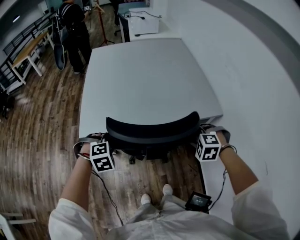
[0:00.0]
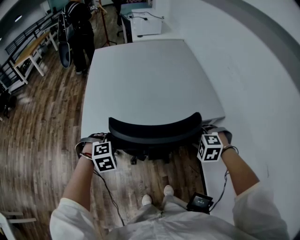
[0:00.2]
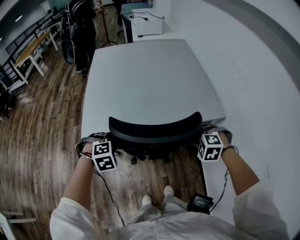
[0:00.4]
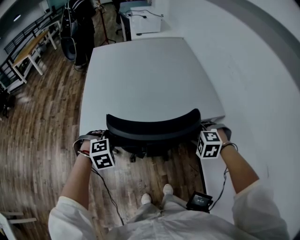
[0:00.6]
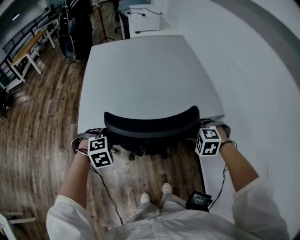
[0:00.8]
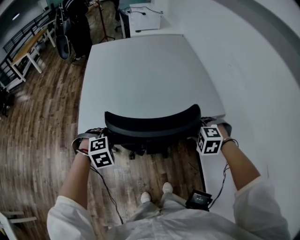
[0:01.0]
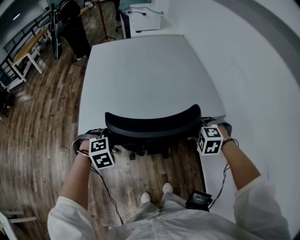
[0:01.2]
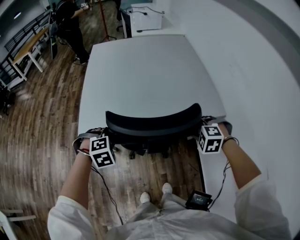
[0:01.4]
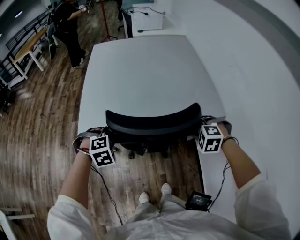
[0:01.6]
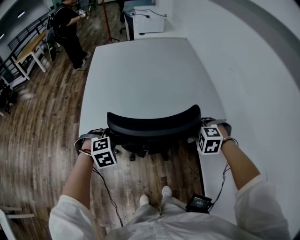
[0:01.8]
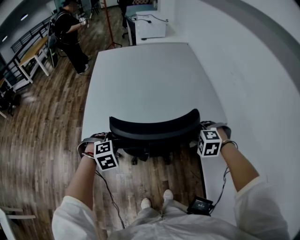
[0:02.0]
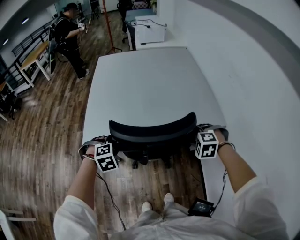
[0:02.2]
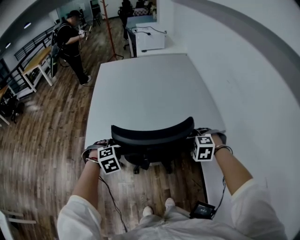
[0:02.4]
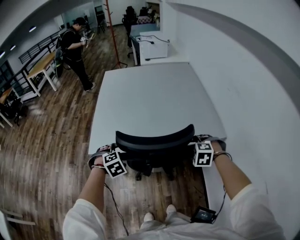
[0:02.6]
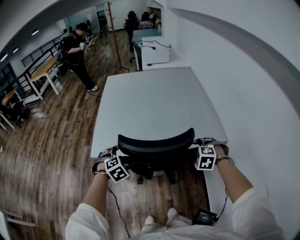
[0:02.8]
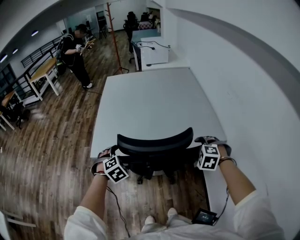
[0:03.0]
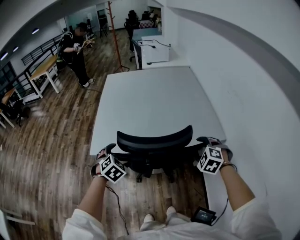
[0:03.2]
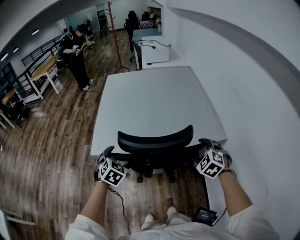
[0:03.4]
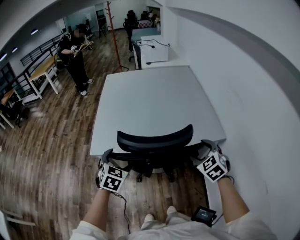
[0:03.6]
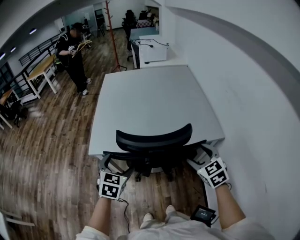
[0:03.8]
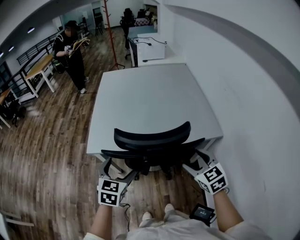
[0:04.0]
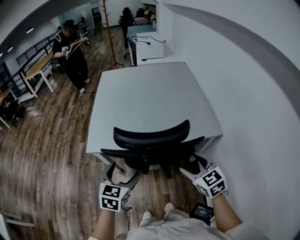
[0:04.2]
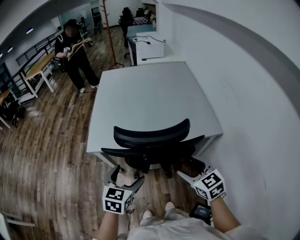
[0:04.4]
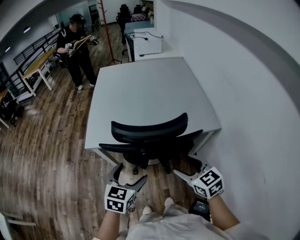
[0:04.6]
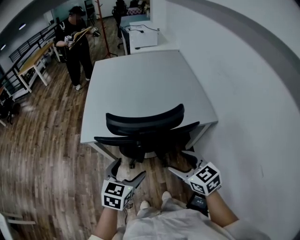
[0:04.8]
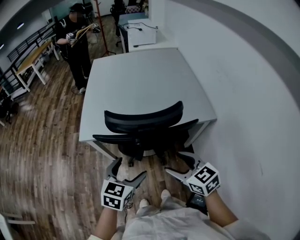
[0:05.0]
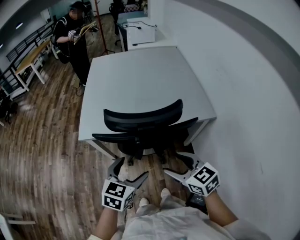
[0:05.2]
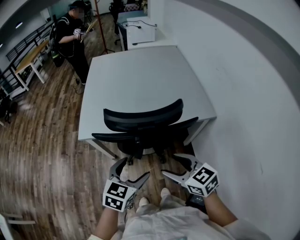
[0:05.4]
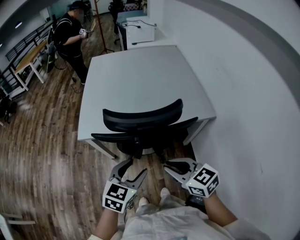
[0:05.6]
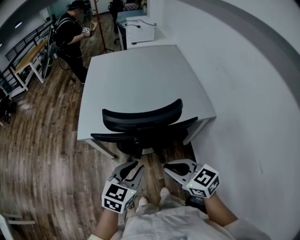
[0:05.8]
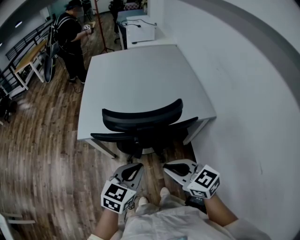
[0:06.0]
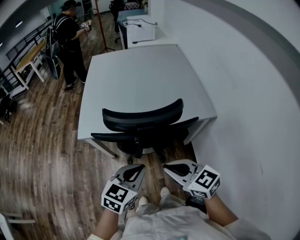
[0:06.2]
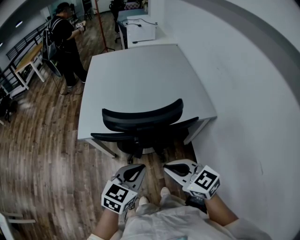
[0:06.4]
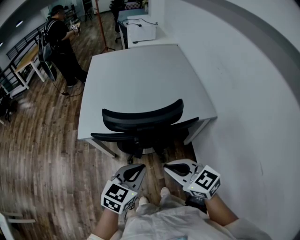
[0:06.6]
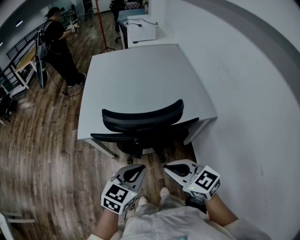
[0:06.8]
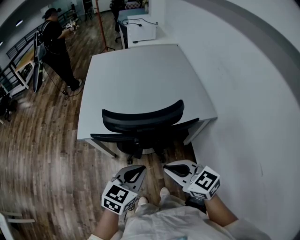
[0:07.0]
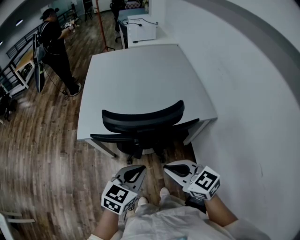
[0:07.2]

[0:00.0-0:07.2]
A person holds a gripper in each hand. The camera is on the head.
0:00.0 to 0:01.4: There are only small adjustments of the grippers.
0:01.4 to 0:02.8: The left gripper opens its fingers, while the right gripper opens up.
0:02.8 to 0:04.4: The left gripper heads backward, upward and to the right, covering some 15 cm, and rotates around the line of its fingers by approximately 50 degrees, counterclockwise from behind, while the right gripper heads backward, upward and to the left, covering some 15 cm, and tilts its fingers some 40 degrees upward.
0:04.4 to 0:05.8: The left gripper heads to the right, covering approximately 5 cm, and closes. The right gripper moves to the left and backward, roughly 10 cm, and closes up.
0:05.8 to 0:07.2: The grippers stay close to where they were, moving slightly.

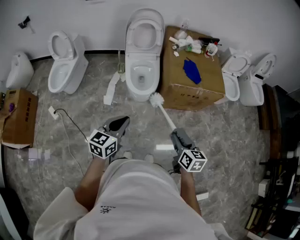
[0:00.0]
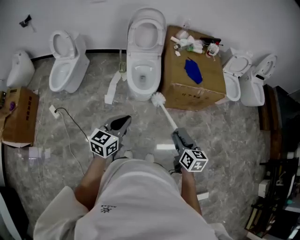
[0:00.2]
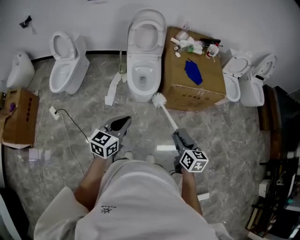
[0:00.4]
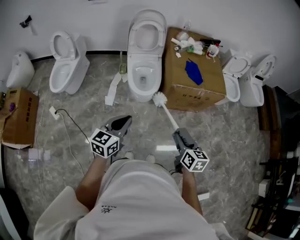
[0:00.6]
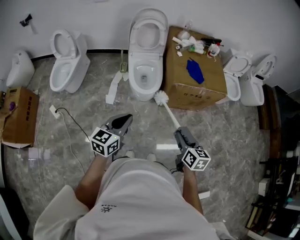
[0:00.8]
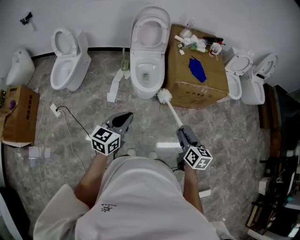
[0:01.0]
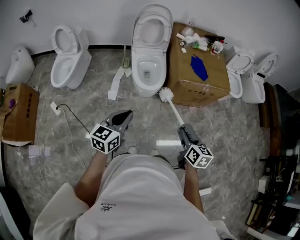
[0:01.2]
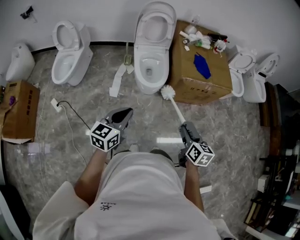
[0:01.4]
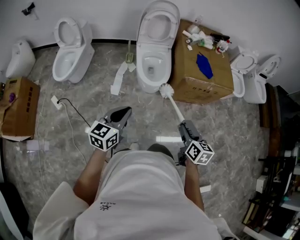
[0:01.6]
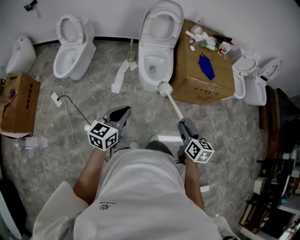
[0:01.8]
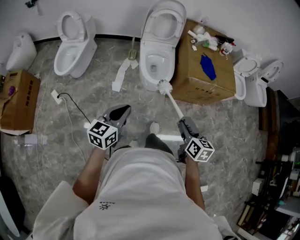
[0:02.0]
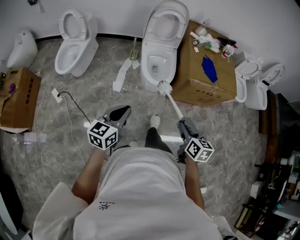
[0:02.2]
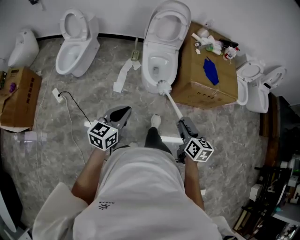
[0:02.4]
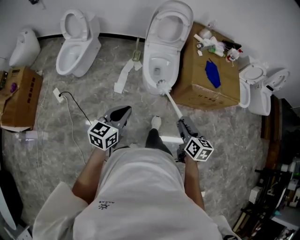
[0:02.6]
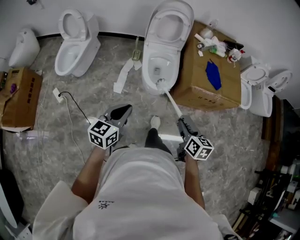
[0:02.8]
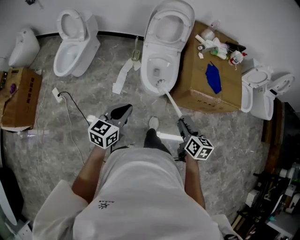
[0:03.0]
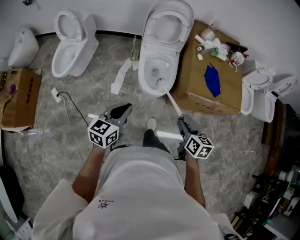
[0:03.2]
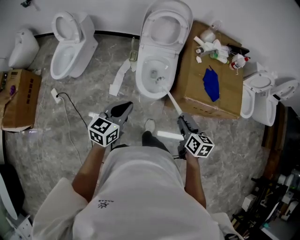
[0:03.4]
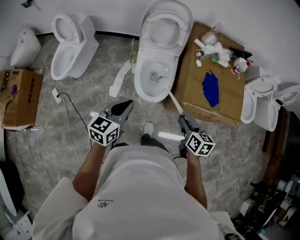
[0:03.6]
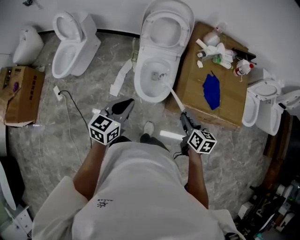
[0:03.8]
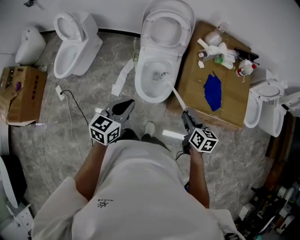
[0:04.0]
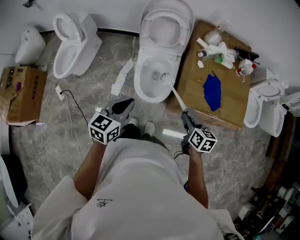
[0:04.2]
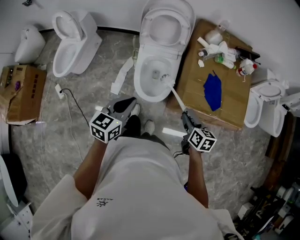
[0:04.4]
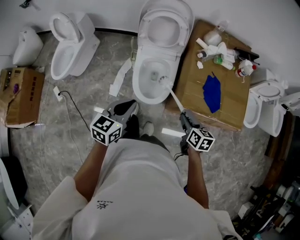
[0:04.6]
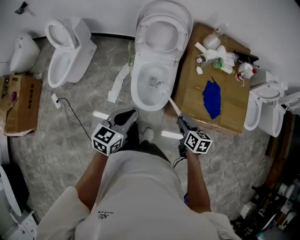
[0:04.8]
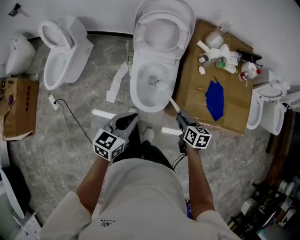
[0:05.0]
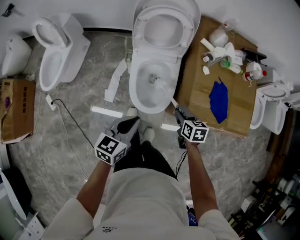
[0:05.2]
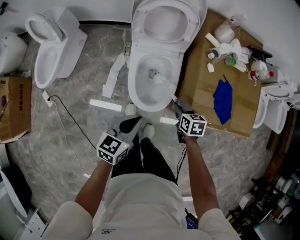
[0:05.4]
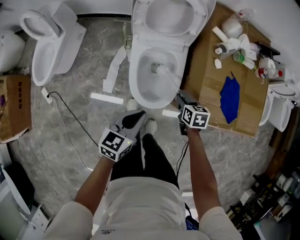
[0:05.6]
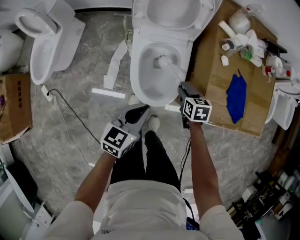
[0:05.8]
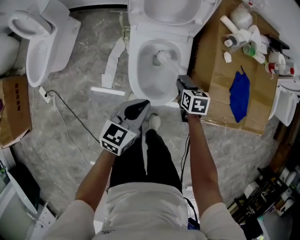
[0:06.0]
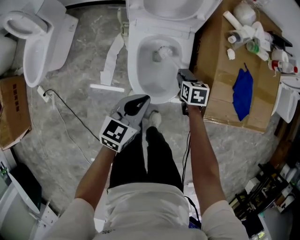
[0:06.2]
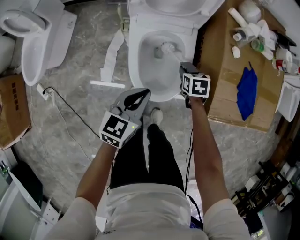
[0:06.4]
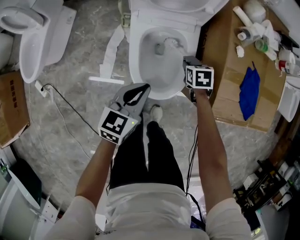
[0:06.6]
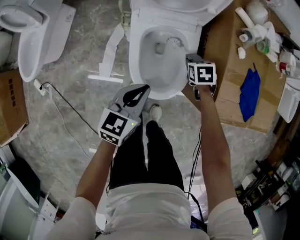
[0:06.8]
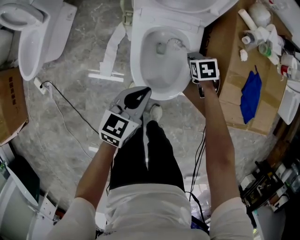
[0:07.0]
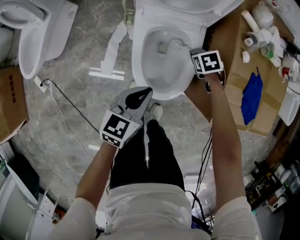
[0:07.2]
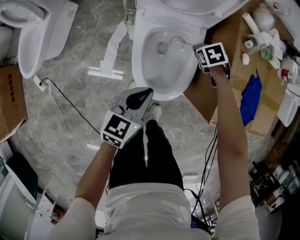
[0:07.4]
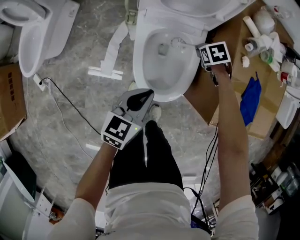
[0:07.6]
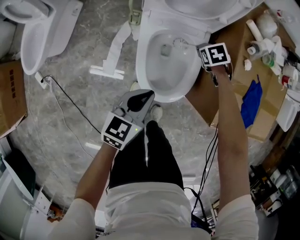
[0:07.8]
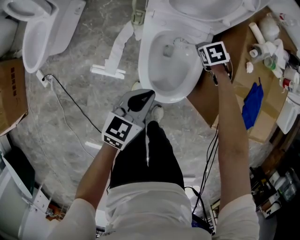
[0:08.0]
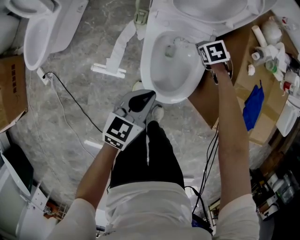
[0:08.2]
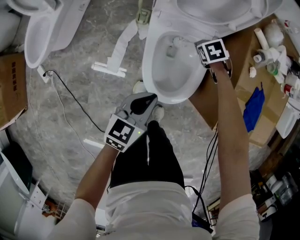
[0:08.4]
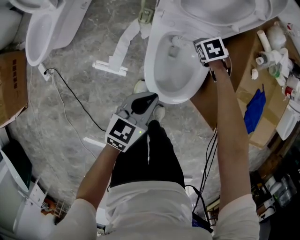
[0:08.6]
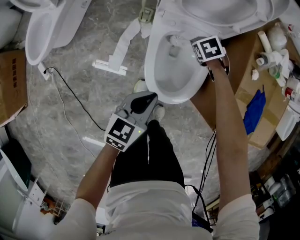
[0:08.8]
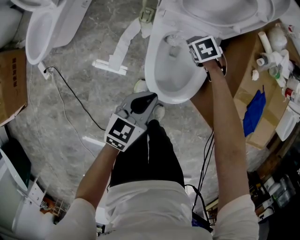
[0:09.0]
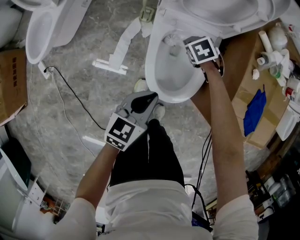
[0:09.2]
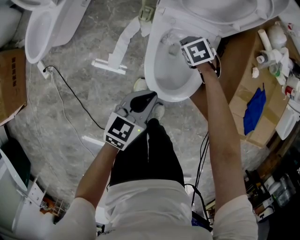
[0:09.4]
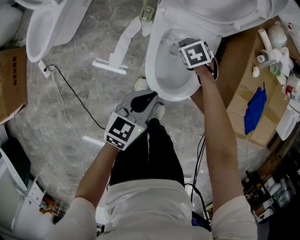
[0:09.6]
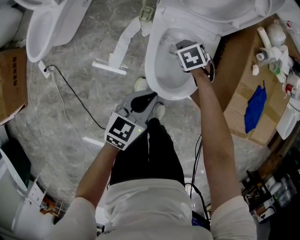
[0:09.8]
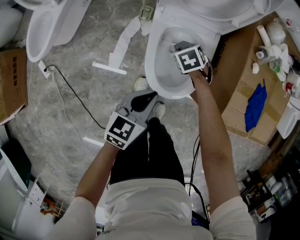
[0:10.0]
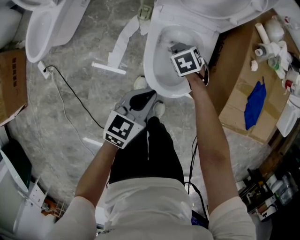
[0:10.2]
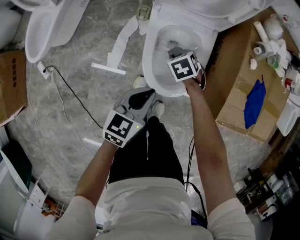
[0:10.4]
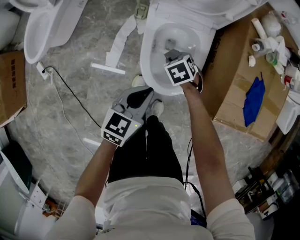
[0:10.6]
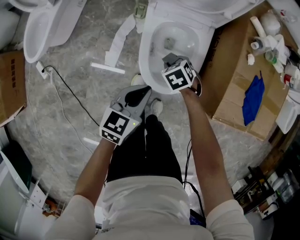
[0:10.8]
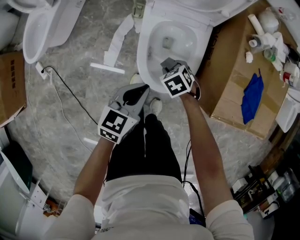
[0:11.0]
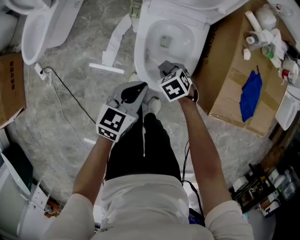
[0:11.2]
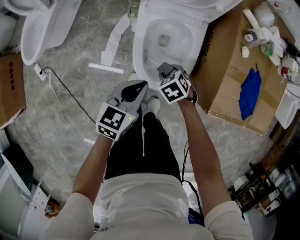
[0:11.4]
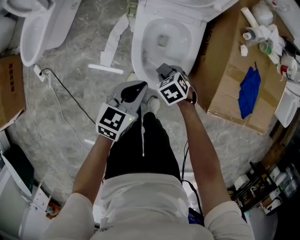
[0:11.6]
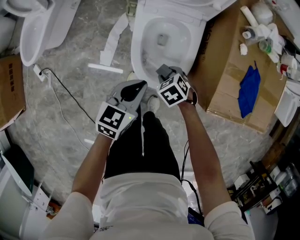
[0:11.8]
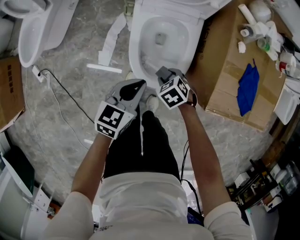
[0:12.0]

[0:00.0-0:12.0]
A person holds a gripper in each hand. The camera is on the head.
0:00.0 to 0:01.6: Both grippers travel together to the left, approximately 10 cm.
0:01.6 to 0:03.0: Both grippers travel together forward, approximately 15 cm.
0:03.0 to 0:04.4: Both grippers travel together forward and to the right, about 25 cm.
0:04.4 to 0:06.0: The right gripper goes approximately 35 cm downward, forward and to the left, and changes its angle by roughly 20 degrees; the left gripper heads downward and forward, covering roughly 25 cm.
0:06.0 to 0:07.6: The right gripper shifts by approximately 15 cm, and turns by roughly 30 degrees, while the left gripper heads downward, covering approximately 5 cm.
0:07.6 to 0:09.0: The right gripper moves about 15 cm.
0:09.0 to 0:10.4: The right gripper changes place by roughly 10 cm.
0:10.4 to 0:12.0: The right gripper moves backward, approximately 15 cm.

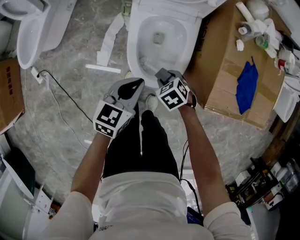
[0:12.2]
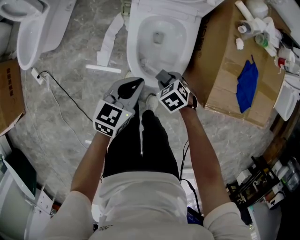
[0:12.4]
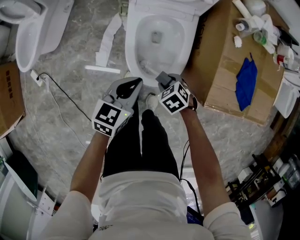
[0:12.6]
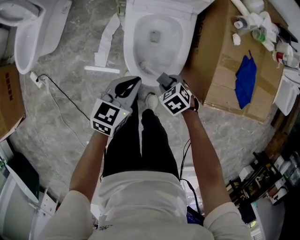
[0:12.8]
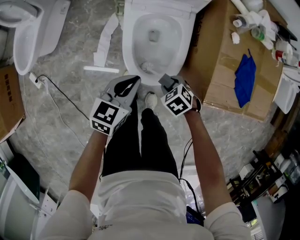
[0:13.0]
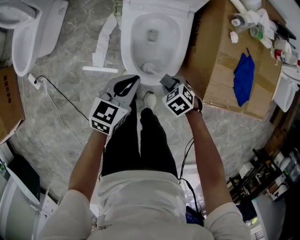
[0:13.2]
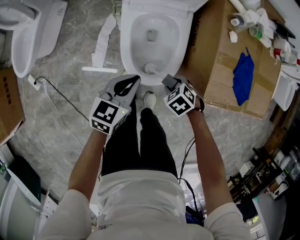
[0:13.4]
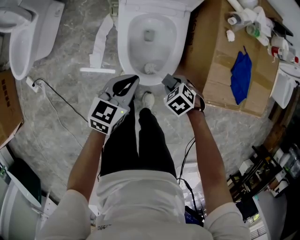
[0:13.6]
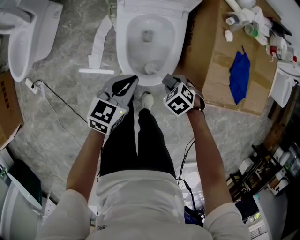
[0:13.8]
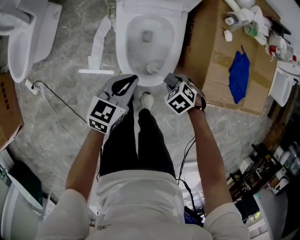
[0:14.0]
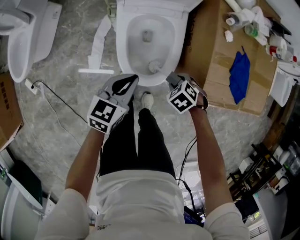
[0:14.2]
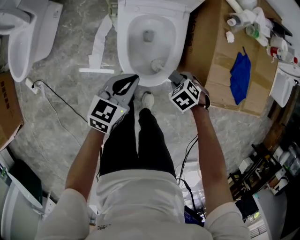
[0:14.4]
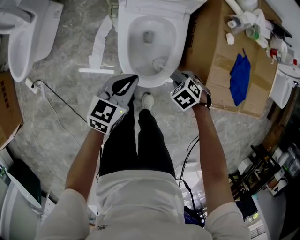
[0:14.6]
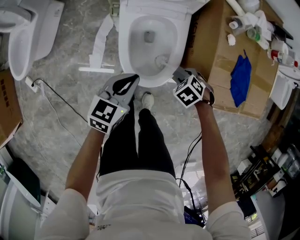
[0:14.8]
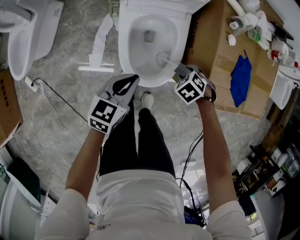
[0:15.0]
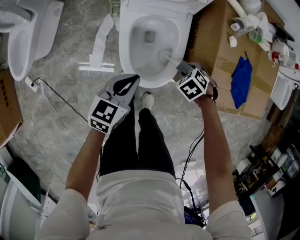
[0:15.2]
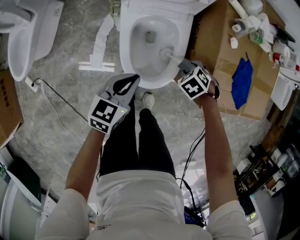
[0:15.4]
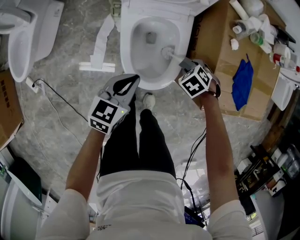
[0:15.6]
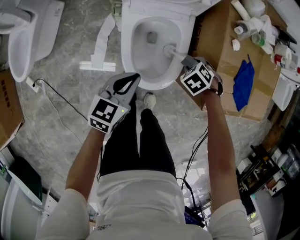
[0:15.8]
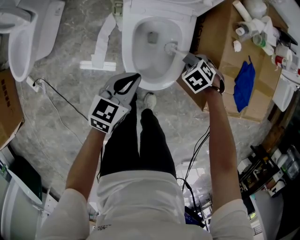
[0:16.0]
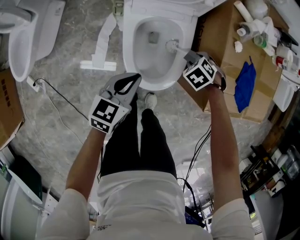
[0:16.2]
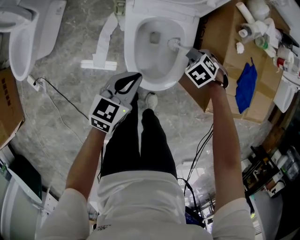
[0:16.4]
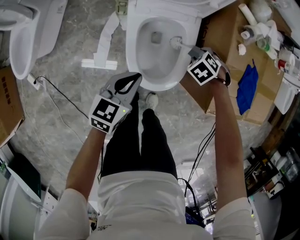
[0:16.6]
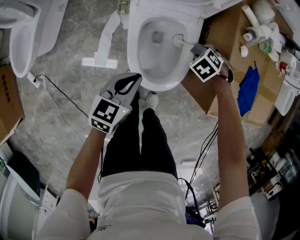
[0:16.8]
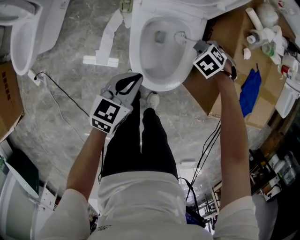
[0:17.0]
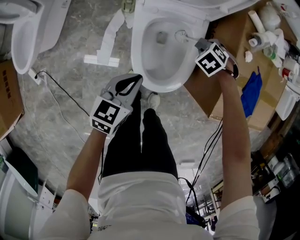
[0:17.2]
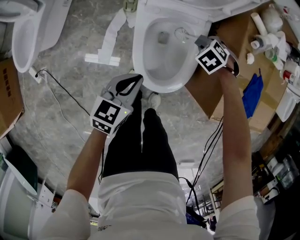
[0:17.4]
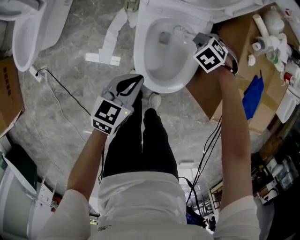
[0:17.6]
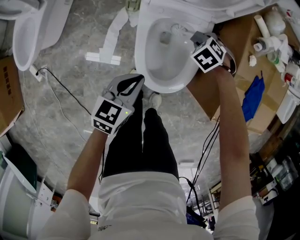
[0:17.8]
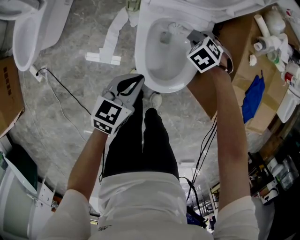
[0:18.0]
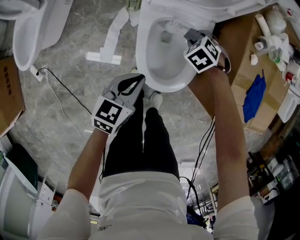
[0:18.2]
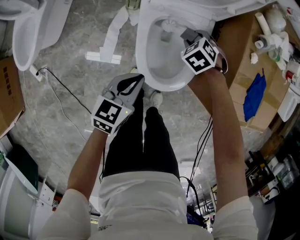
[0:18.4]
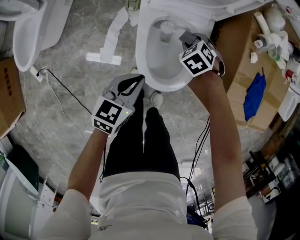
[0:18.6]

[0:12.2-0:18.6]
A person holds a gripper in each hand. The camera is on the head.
0:12.2 to 0:13.8: The right gripper moves roughly 5 cm.
0:13.8 to 0:15.4: The right gripper changes place by about 10 cm.
0:15.4 to 0:17.0: The right gripper shifts by roughly 10 cm.
0:17.0 to 0:18.6: The right gripper shifts by about 10 cm.
